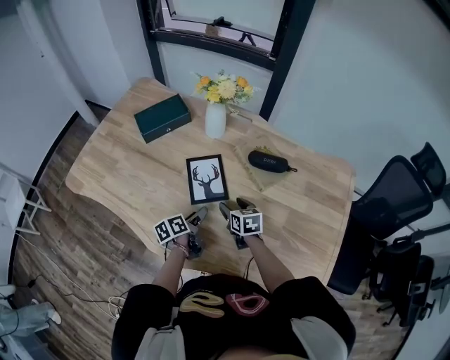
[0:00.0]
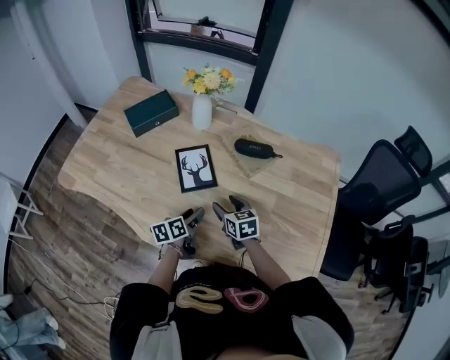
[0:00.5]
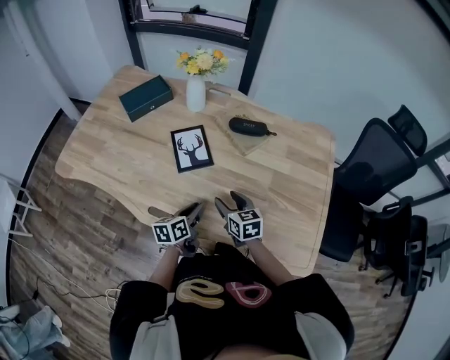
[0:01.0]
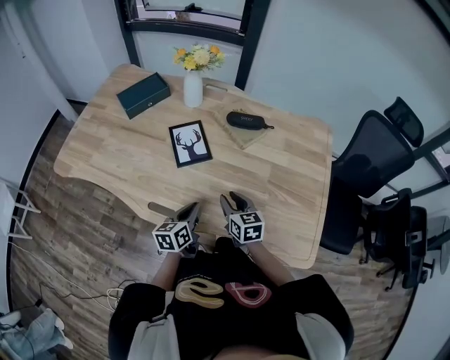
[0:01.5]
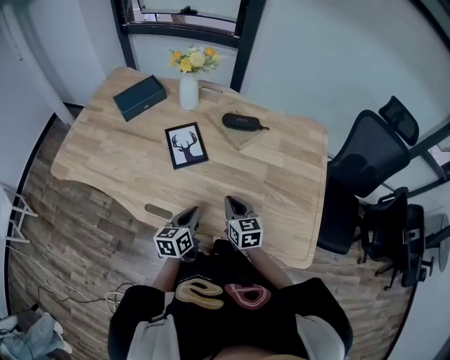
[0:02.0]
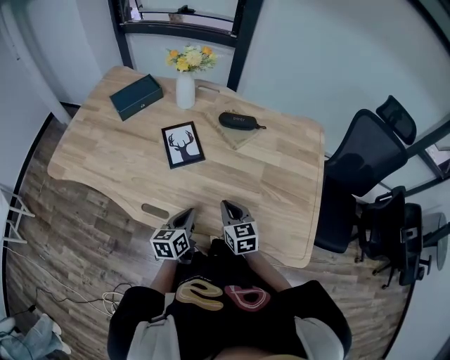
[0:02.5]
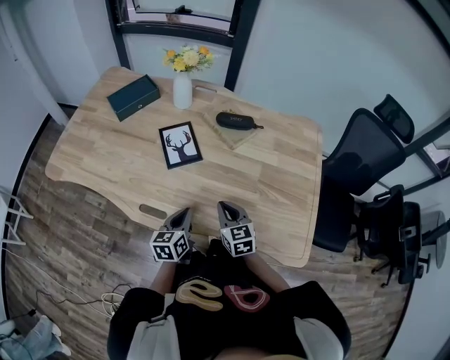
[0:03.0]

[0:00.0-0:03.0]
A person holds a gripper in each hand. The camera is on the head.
0:00.0 to 0:01.5: The left gripper is displaced backward and upward by roughly 15 cm, changes its angle by roughly 30 degrees, and closes up; the right gripper goes some 15 cm backward, and closes its fingers.
0:01.5 to 0:03.0: The right gripper closes its fingers.

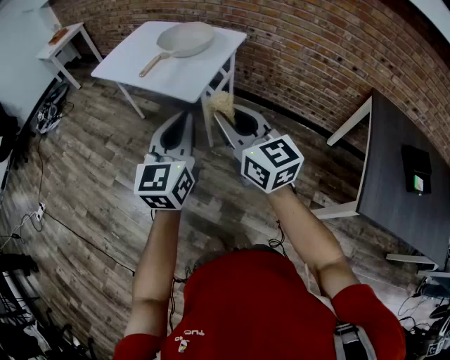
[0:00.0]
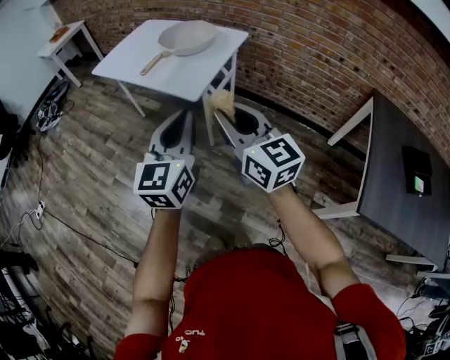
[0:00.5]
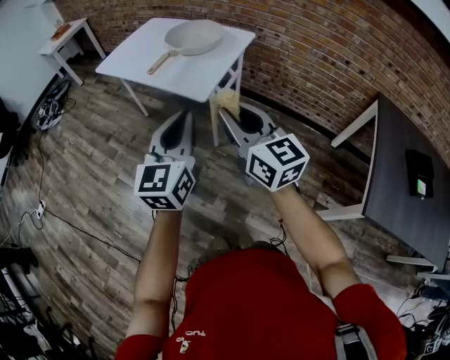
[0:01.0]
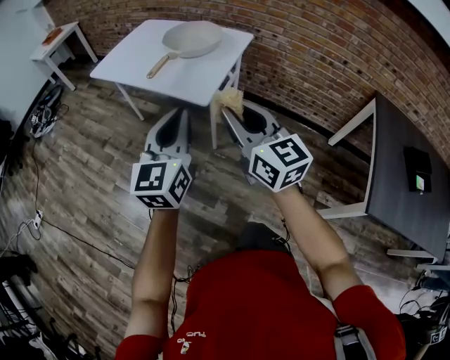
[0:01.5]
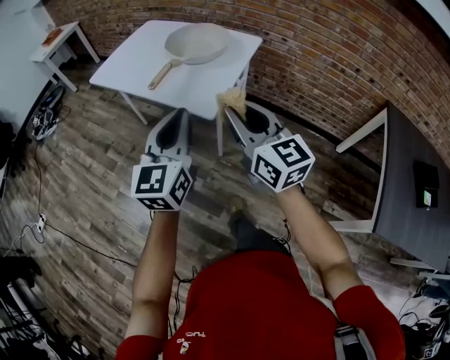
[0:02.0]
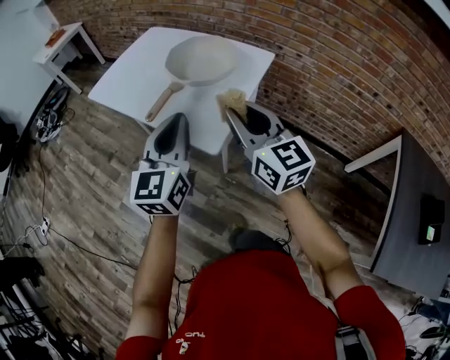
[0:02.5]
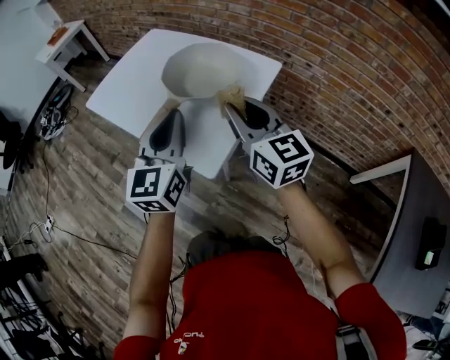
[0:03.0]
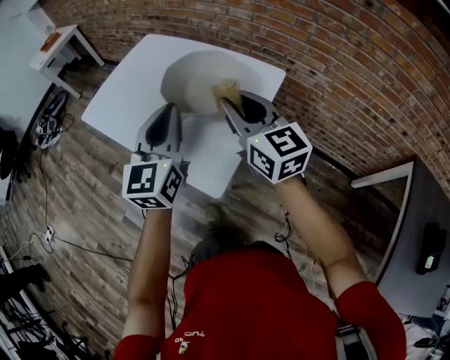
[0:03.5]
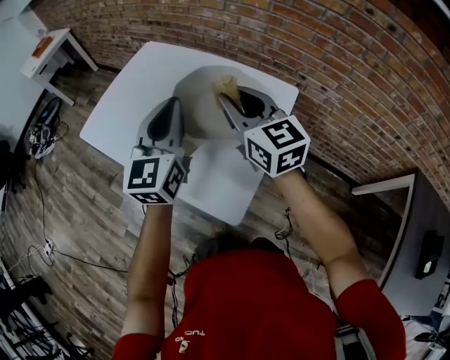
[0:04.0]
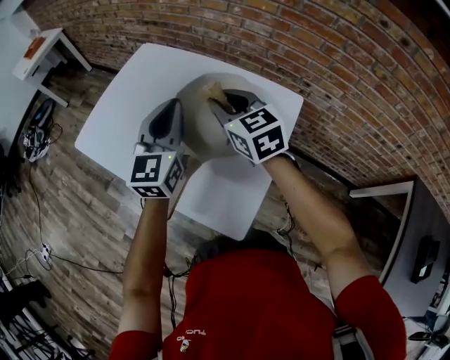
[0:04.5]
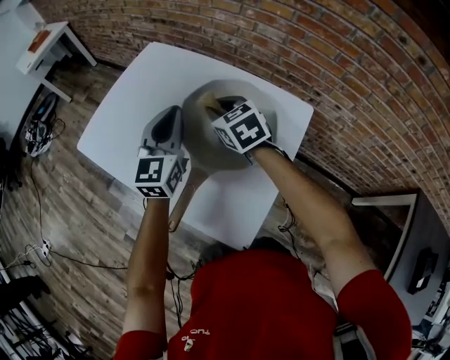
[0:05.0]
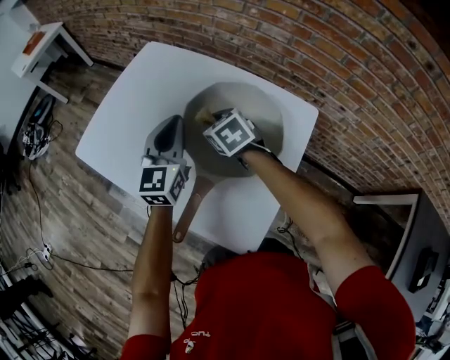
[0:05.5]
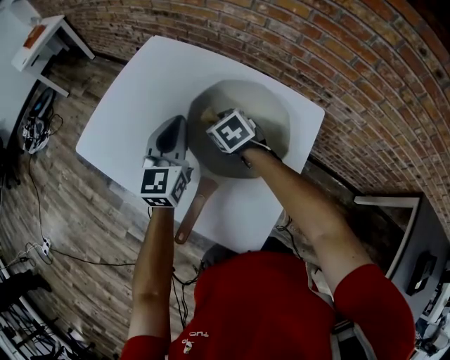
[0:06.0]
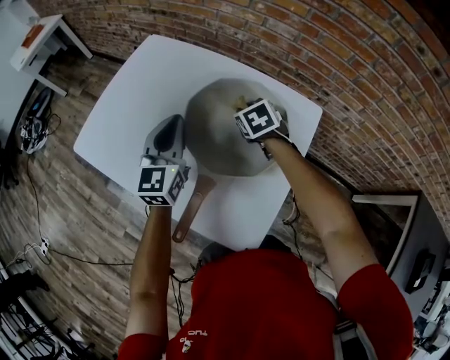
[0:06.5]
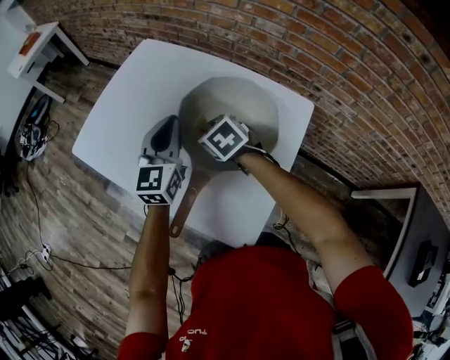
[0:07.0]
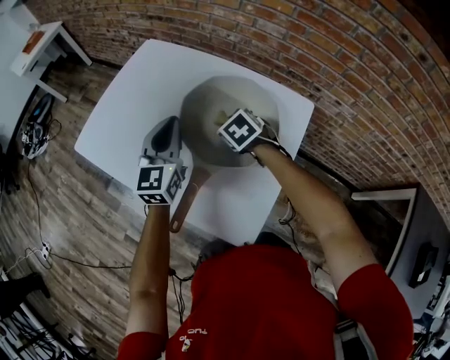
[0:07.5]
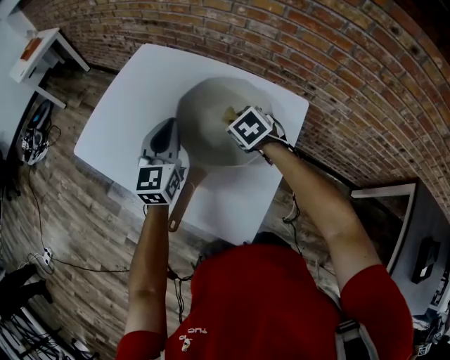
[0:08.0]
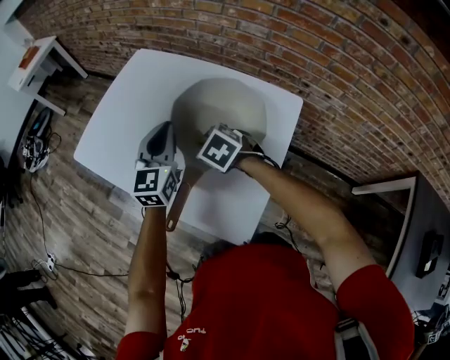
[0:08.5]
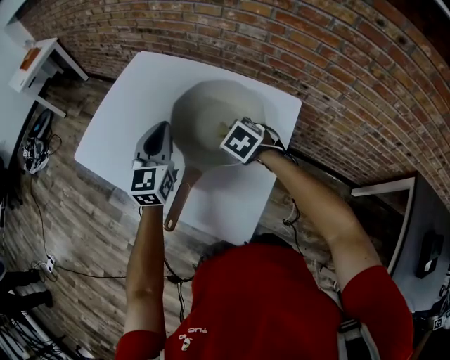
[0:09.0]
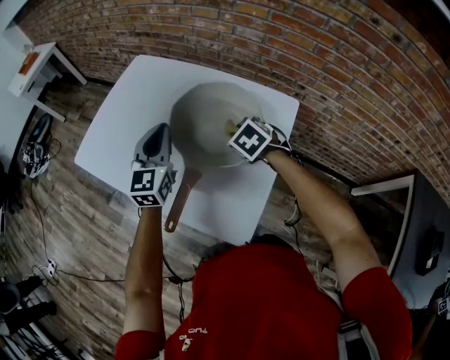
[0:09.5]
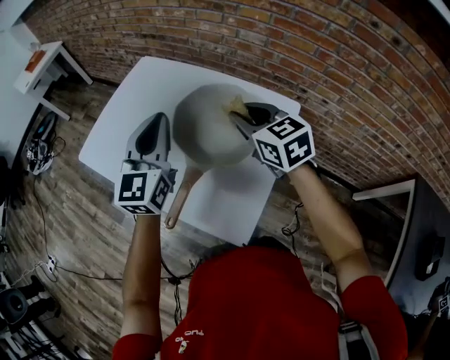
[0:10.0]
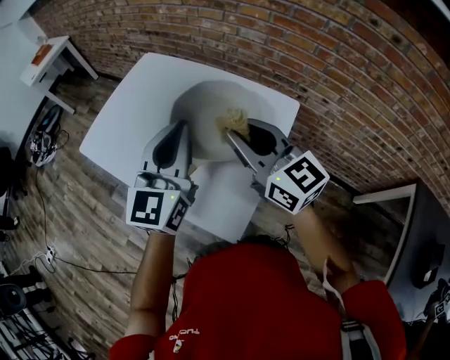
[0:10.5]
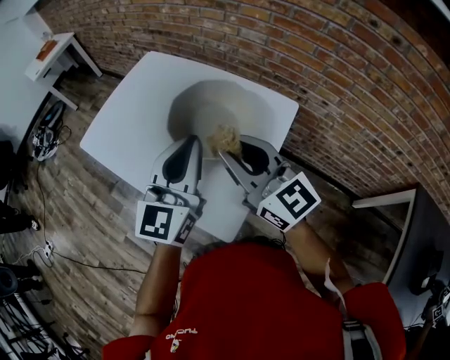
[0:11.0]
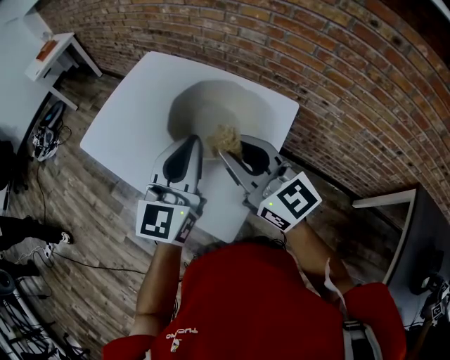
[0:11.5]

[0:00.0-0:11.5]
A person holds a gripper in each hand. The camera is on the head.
0:00.0 to 0:02.0: The left gripper heads forward and to the left, covering approximately 15 cm; the right gripper shifts approximately 15 cm forward.
0:02.0 to 0:04.0: The pair of grippers is taken forward, about 40 cm.
0:04.0 to 0:06.0: The right gripper heads downward and forward, covering approximately 30 cm, and tilts its fingers some 50 degrees downward; the left gripper is displaced forward and downward by some 20 cm.
0:06.0 to 0:07.5: The right gripper moves left and right over approximately 10 cm, changing direction 2 times.
0:07.5 to 0:09.5: The right gripper shifts roughly 5 cm backward.
0:09.5 to 0:11.5: The right gripper is displaced upward and backward by approximately 25 cm, and points its fingers some 70 degrees further upward. The left gripper shifts about 20 cm backward, upward and to the right.

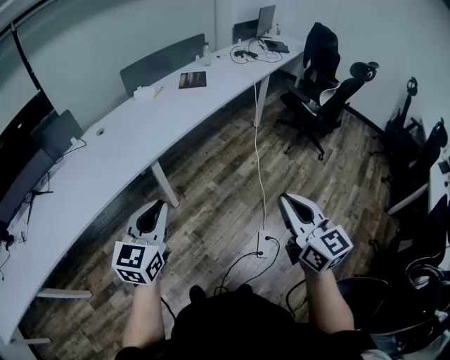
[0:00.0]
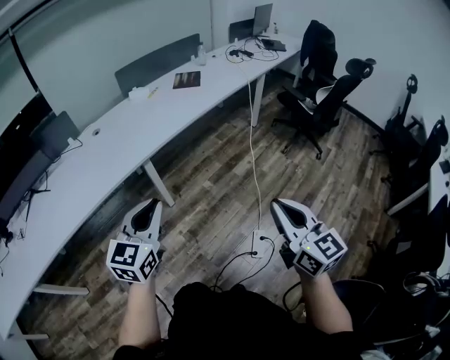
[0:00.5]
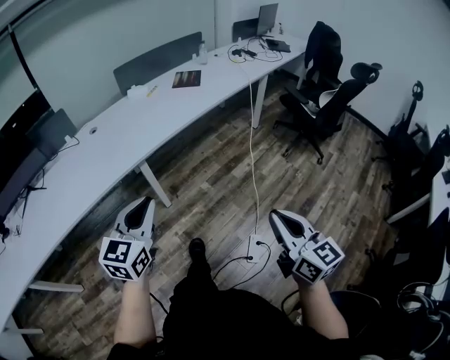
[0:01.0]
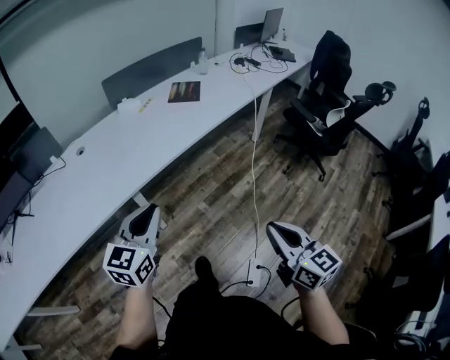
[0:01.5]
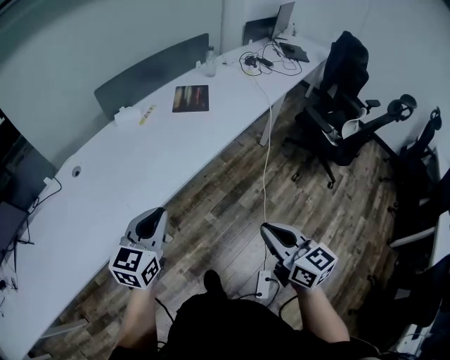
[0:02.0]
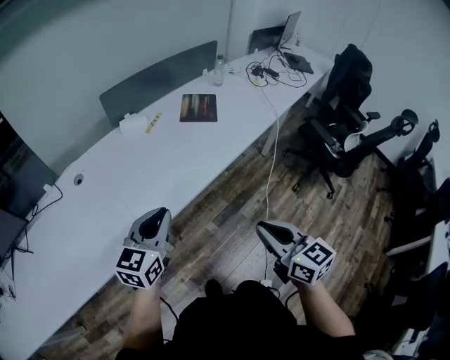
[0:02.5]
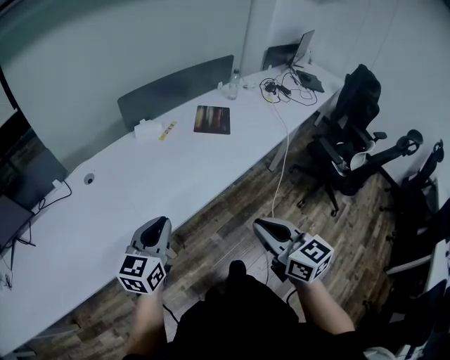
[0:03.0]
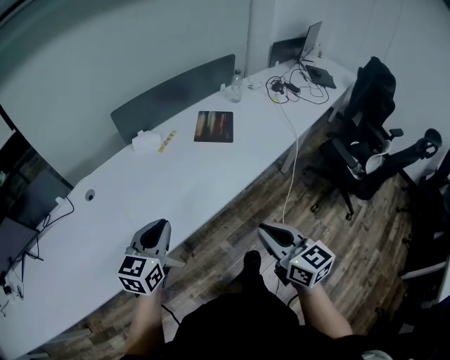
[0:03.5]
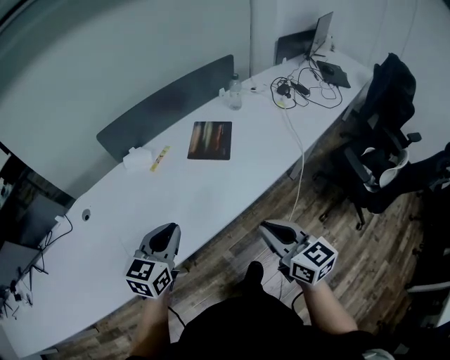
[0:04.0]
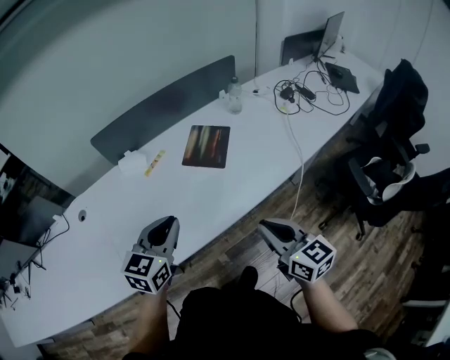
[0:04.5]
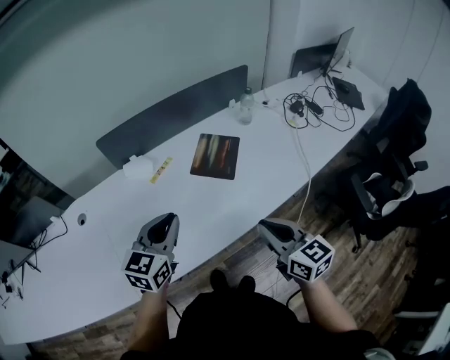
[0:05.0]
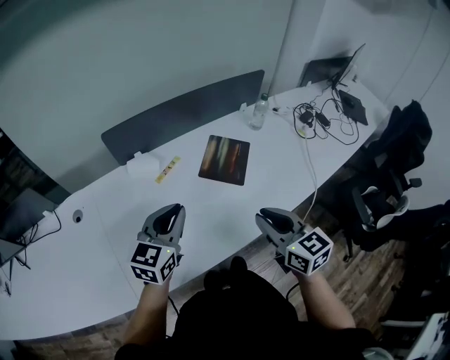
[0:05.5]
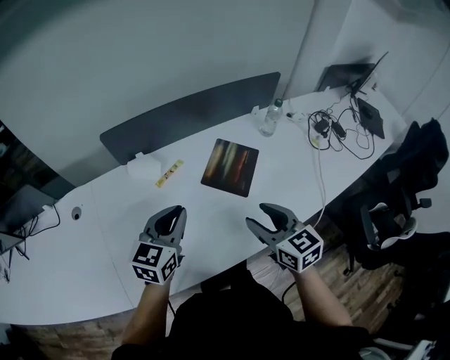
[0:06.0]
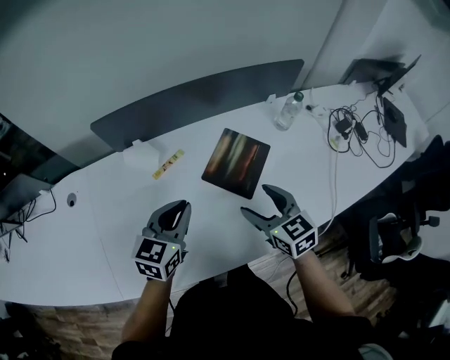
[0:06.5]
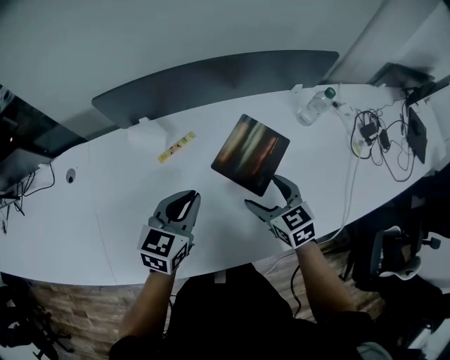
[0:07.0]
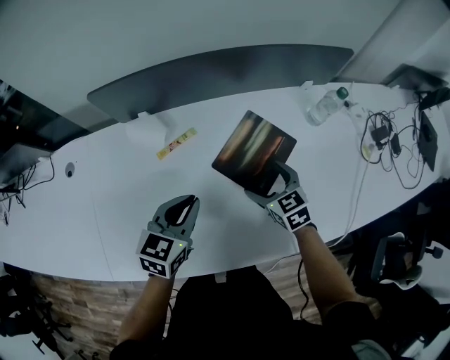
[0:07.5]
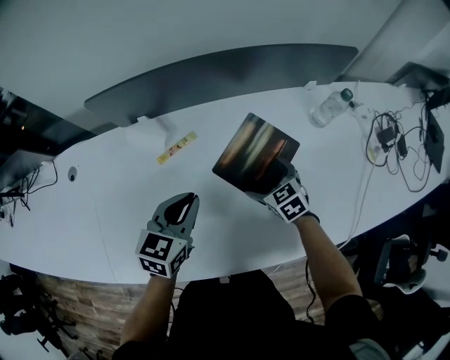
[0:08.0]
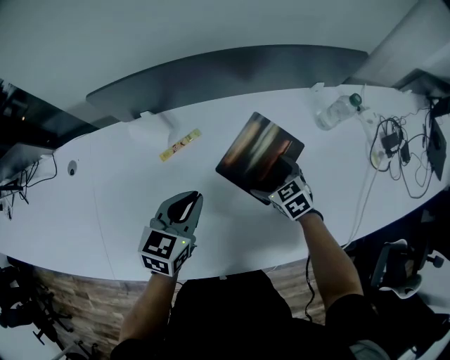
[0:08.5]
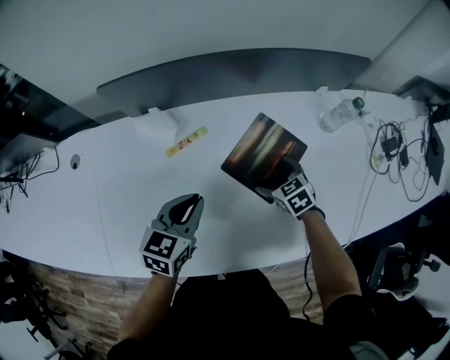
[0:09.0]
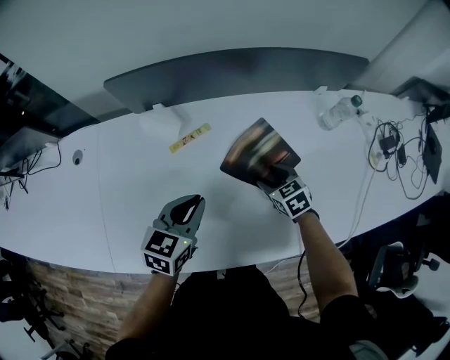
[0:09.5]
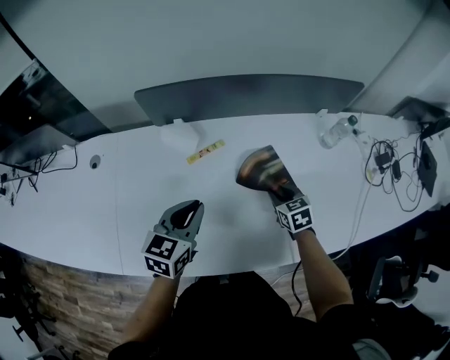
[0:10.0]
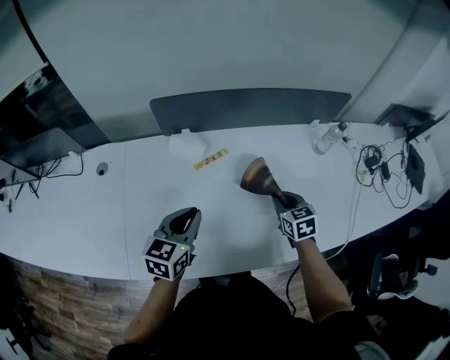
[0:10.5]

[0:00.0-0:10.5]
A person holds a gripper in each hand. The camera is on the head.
0:00.0 to 0:02.0: Both grippers travel together forward, about 40 cm.
0:02.0 to 0:04.0: The two grippers go some 30 cm forward.
0:04.0 to 0:06.5: Both grippers move forward, approximately 30 cm. The right gripper changes its angle by approximately 30 degrees, and opens its fingers.
0:06.5 to 0:08.5: The right gripper shifts roughly 25 cm downward and forward, turns by approximately 30 degrees, and opens up. The left gripper heads downward, covering some 10 cm.
0:08.5 to 0:10.5: The left gripper heads to the left, backward and upward, covering some 15 cm; the right gripper shifts approximately 15 cm upward and backward, and closes.

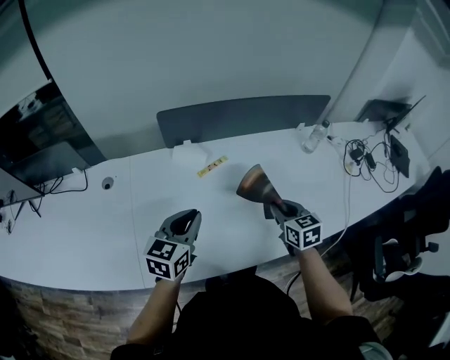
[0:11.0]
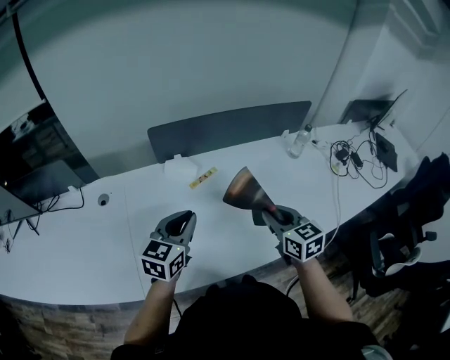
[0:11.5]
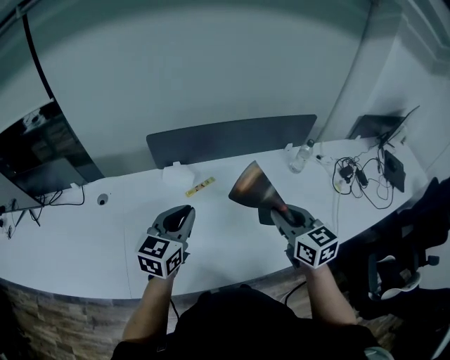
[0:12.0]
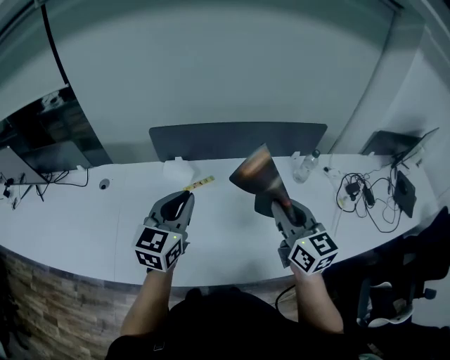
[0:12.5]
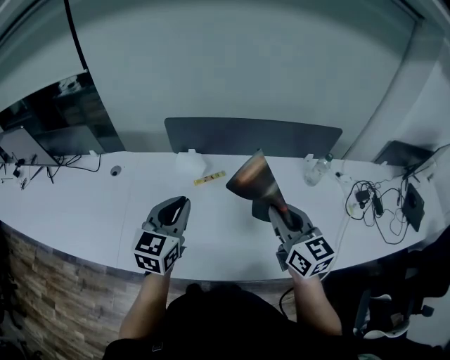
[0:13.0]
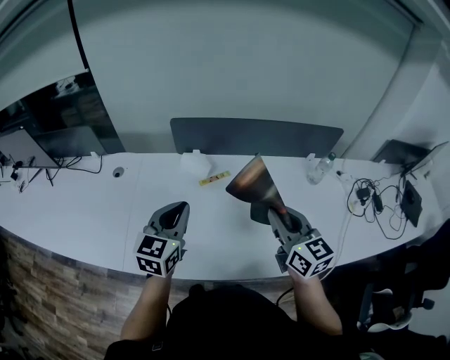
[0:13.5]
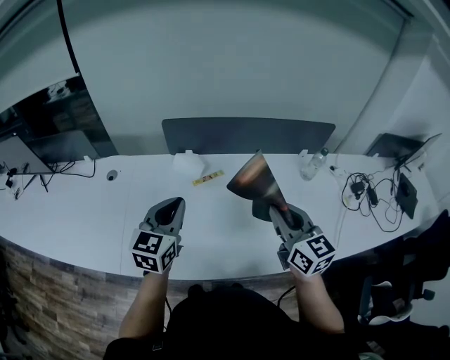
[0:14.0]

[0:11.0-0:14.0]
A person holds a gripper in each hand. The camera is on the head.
0:11.0 to 0:12.5: Both grippers travel together upward and to the right, some 20 cm. The right gripper swivels approximately 30 degrees.
0:12.5 to 0:14.0: The left gripper heads to the left, covering some 5 cm, while the right gripper changes place by some 5 cm.
